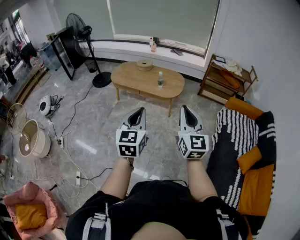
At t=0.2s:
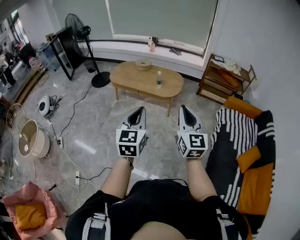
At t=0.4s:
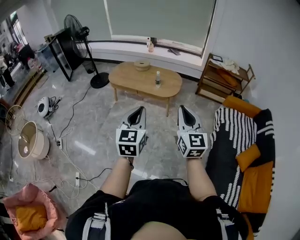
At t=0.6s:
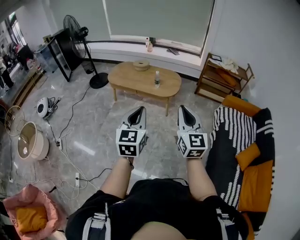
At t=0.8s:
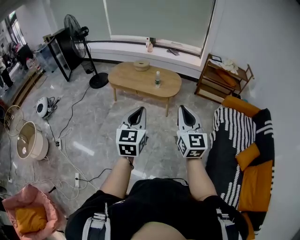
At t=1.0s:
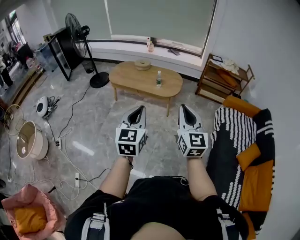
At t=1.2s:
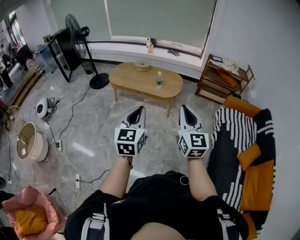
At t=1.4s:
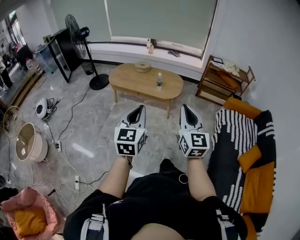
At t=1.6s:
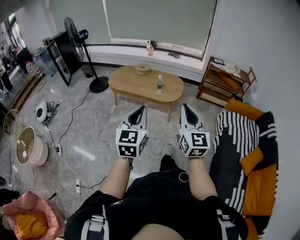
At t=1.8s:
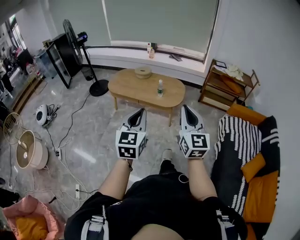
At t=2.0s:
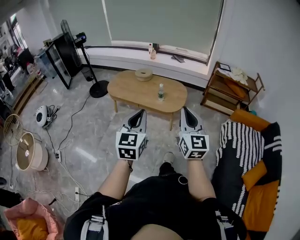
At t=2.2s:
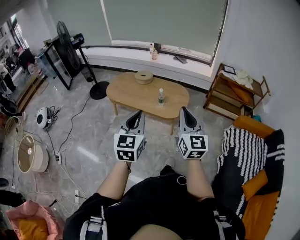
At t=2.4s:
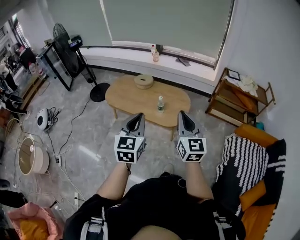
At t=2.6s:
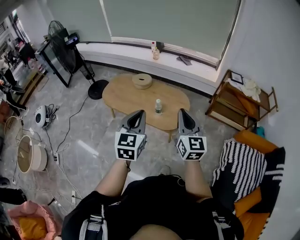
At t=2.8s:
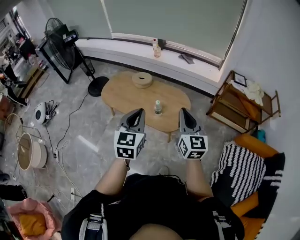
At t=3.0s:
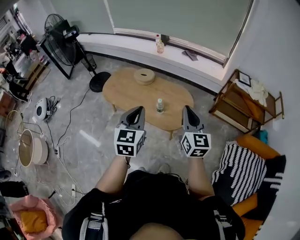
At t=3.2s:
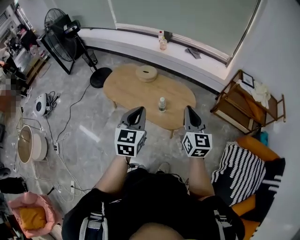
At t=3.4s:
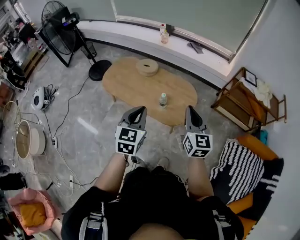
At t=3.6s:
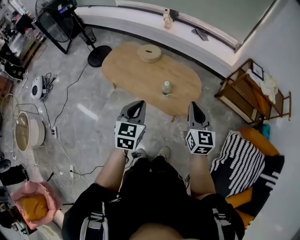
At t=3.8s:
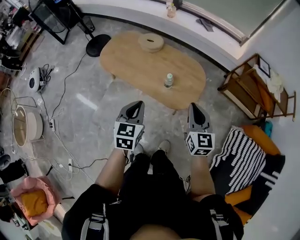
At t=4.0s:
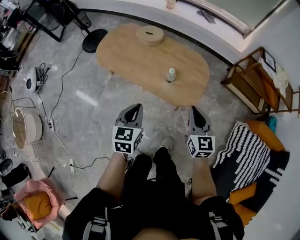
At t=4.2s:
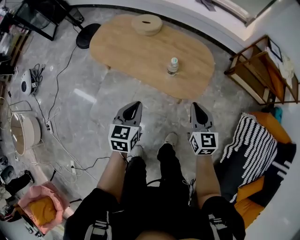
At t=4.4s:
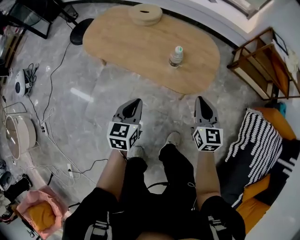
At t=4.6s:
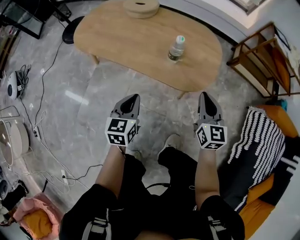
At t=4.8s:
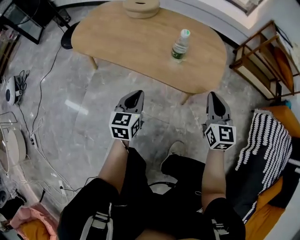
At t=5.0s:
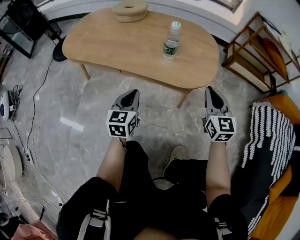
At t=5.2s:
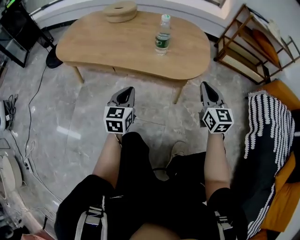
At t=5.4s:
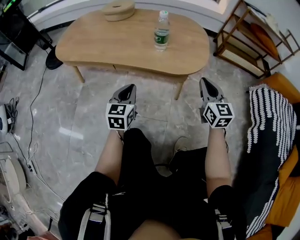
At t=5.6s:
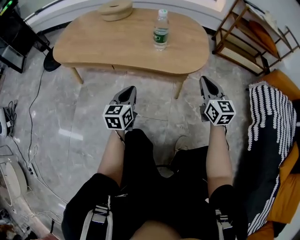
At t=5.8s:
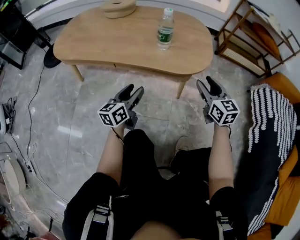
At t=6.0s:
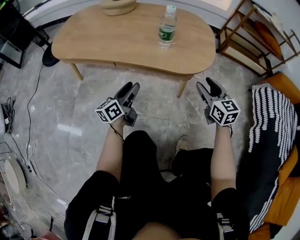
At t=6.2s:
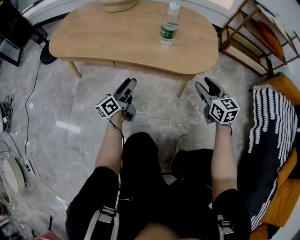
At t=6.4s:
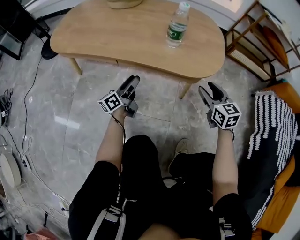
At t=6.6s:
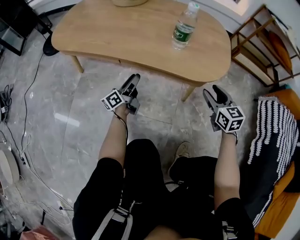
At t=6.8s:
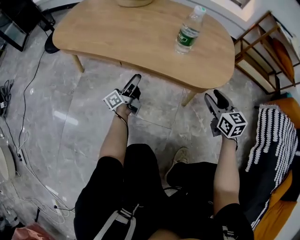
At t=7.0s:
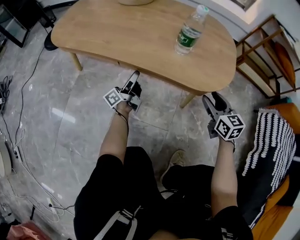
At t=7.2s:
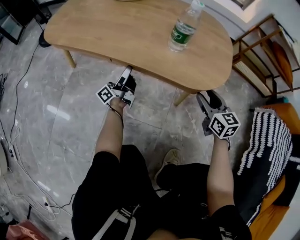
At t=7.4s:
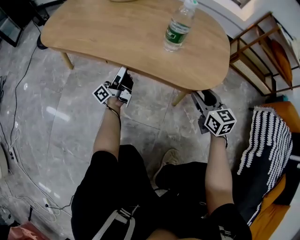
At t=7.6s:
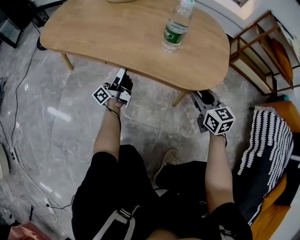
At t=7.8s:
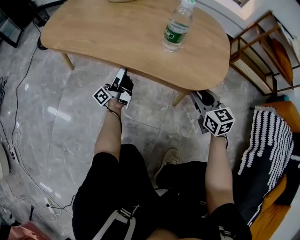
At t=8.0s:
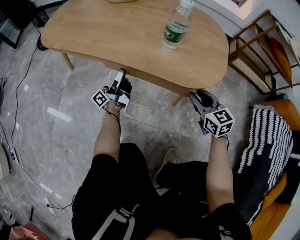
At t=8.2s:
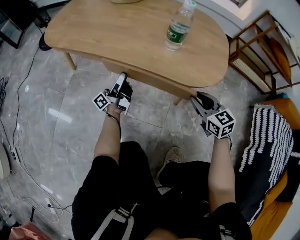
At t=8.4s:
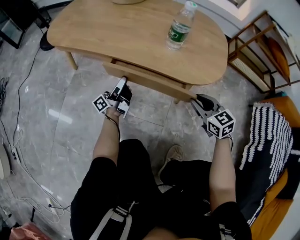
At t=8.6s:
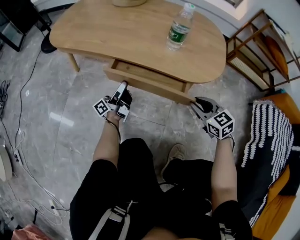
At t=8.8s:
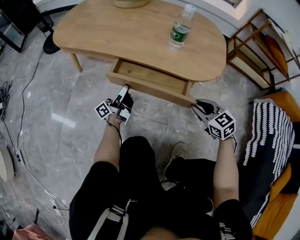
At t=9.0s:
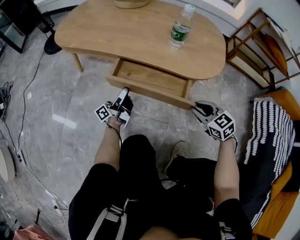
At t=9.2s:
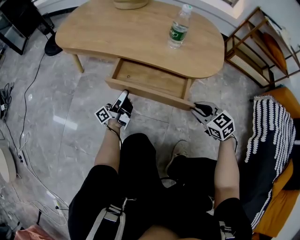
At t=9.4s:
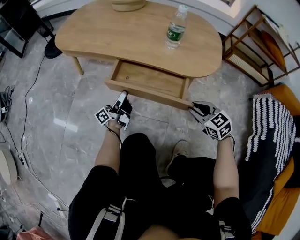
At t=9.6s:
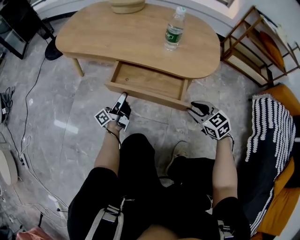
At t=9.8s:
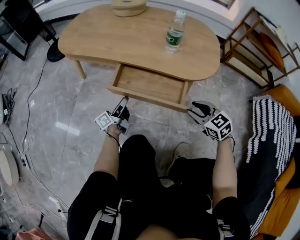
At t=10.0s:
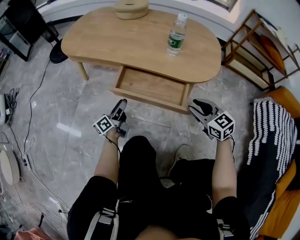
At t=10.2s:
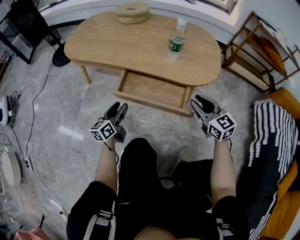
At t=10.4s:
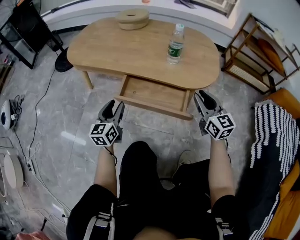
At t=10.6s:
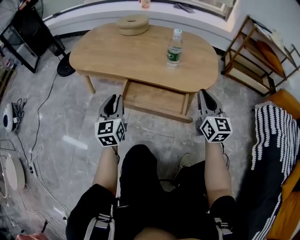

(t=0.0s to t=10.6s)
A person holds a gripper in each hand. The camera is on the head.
t=0.0s - t=1.6s: The right gripper moves approximately 5 cm; the left gripper ends up some 5 cm from where it was.
t=1.6s - t=3.0s: The two grippers travel together, forward, some 60 cm.
t=3.0s - t=4.6s: Both grippers travel together downward, some 60 cm.
t=4.6s - t=6.0s: Both grippers move downward, approximately 25 cm. The left gripper rotates roughly 40 degrees, and opens up. Meanwhile the right gripper opens its fingers.
t=6.0s - t=7.6s: The right gripper goes roughly 15 cm downward and forward. Meanwhile the left gripper heads forward and downward, covering roughly 20 cm, and turns by roughly 40 degrees.
t=7.6s - t=9.0s: The two grippers go roughly 15 cm backward and to the left. The right gripper swivels approximately 30 degrees.
t=9.0s - t=10.6s: Both grippers move upward, some 20 cm. The left gripper rotates around the line of its fingers by approximately 80 degrees, clockwise from behind, and closes its fingers, while the right gripper angles its fingers upward, by roughly 40 degrees.

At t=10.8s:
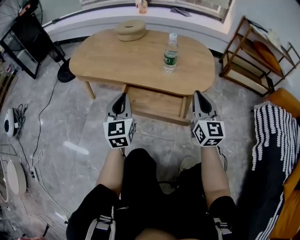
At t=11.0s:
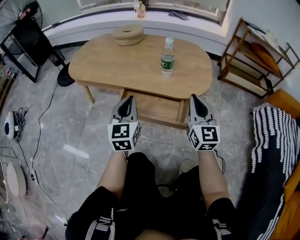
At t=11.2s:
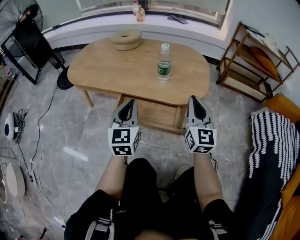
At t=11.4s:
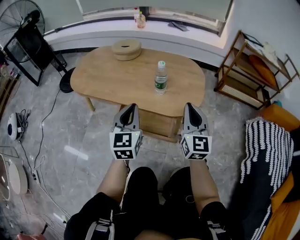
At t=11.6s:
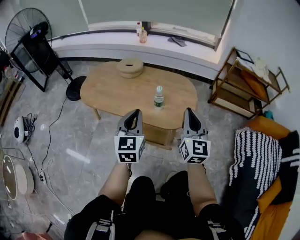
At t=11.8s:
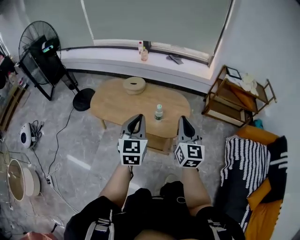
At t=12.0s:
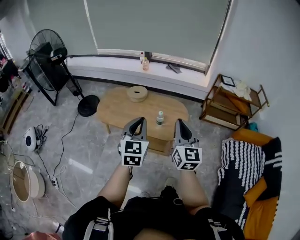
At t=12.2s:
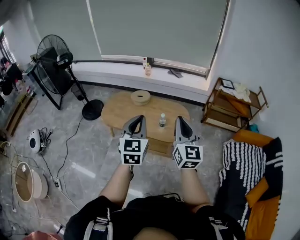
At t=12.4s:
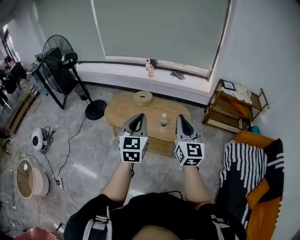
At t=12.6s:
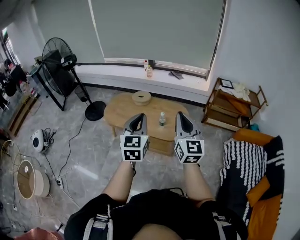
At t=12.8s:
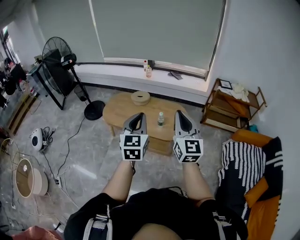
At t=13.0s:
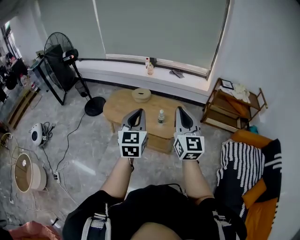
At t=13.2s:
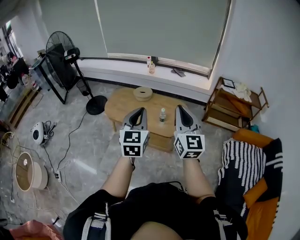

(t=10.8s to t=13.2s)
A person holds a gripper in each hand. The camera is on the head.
t=10.8s - t=12.0s: The grippers both shift upward by some 70 cm.
t=12.0s - t=13.2s: The right gripper heads upward and backward, covering some 15 cm, while the left gripper goes roughly 10 cm backward and upward.

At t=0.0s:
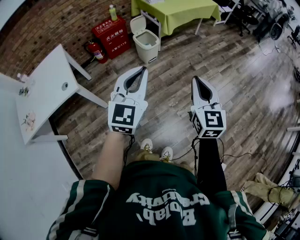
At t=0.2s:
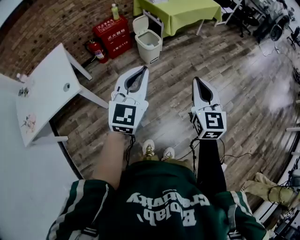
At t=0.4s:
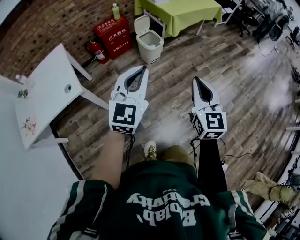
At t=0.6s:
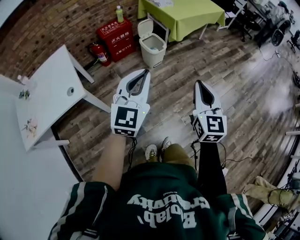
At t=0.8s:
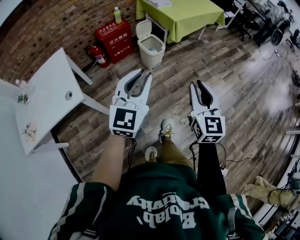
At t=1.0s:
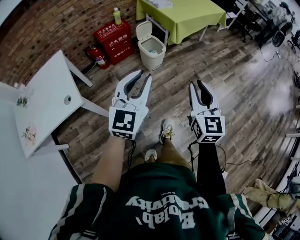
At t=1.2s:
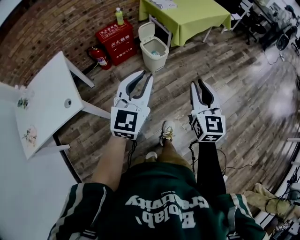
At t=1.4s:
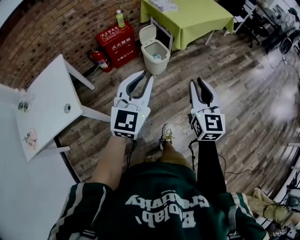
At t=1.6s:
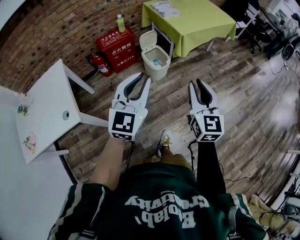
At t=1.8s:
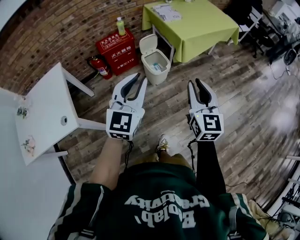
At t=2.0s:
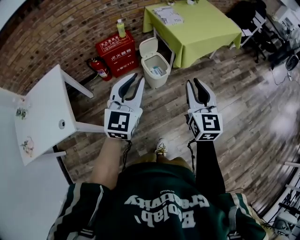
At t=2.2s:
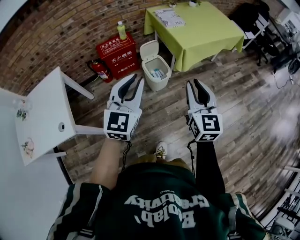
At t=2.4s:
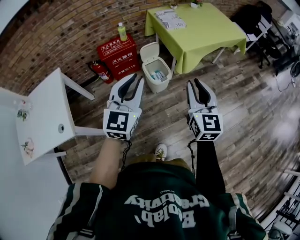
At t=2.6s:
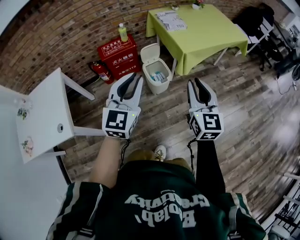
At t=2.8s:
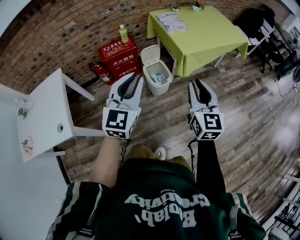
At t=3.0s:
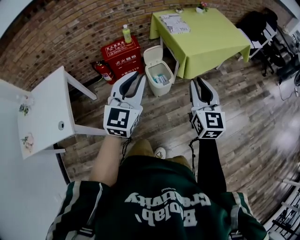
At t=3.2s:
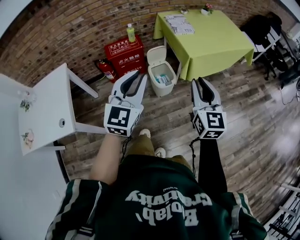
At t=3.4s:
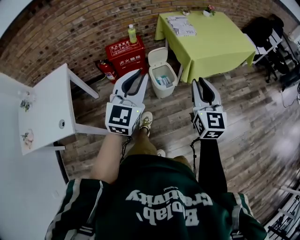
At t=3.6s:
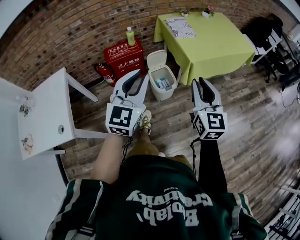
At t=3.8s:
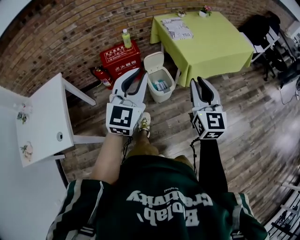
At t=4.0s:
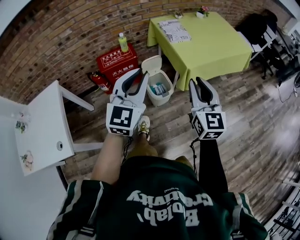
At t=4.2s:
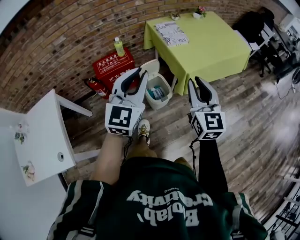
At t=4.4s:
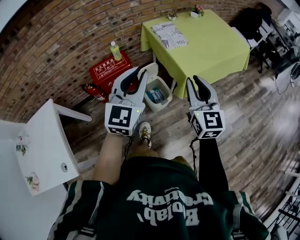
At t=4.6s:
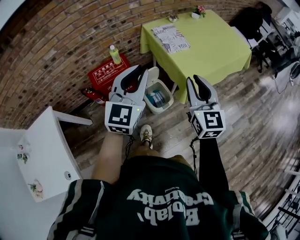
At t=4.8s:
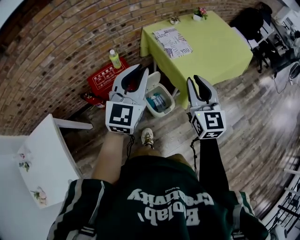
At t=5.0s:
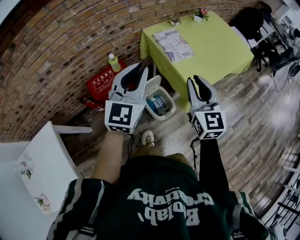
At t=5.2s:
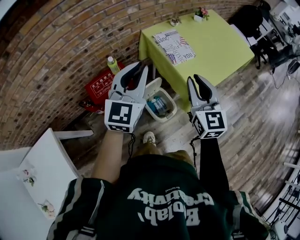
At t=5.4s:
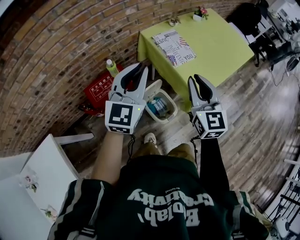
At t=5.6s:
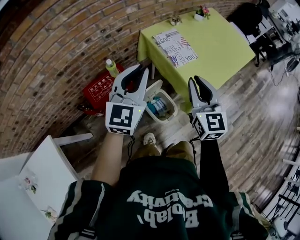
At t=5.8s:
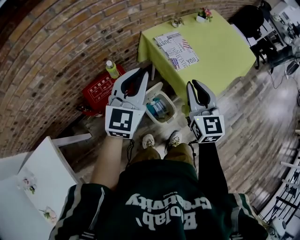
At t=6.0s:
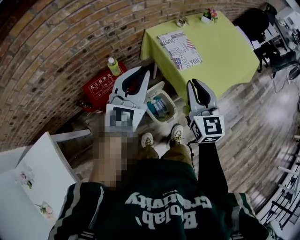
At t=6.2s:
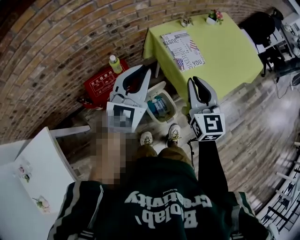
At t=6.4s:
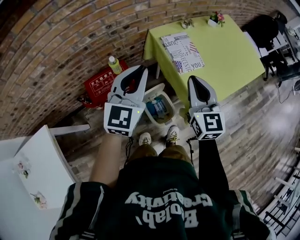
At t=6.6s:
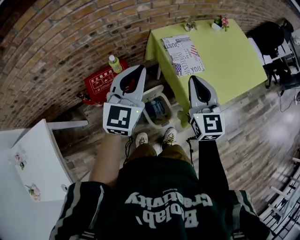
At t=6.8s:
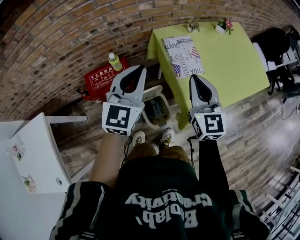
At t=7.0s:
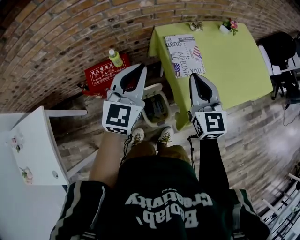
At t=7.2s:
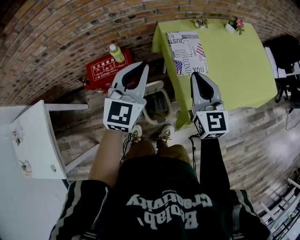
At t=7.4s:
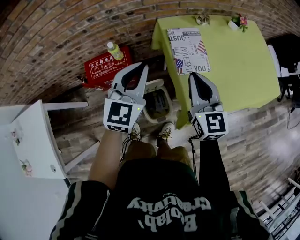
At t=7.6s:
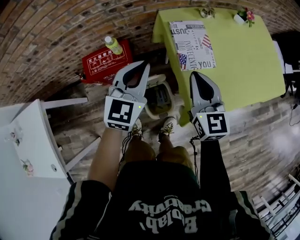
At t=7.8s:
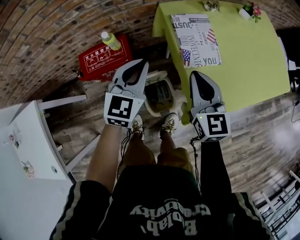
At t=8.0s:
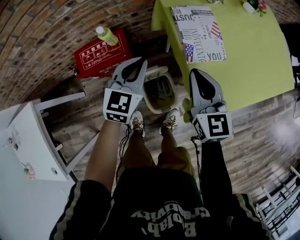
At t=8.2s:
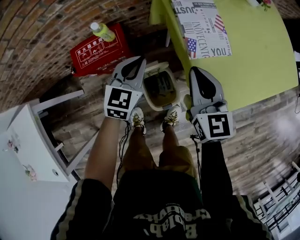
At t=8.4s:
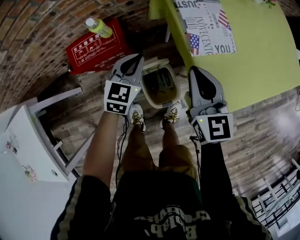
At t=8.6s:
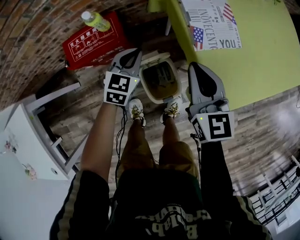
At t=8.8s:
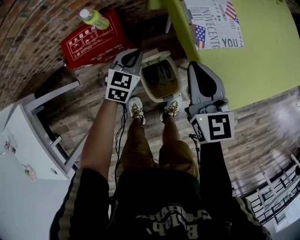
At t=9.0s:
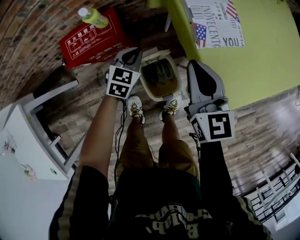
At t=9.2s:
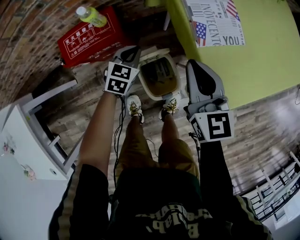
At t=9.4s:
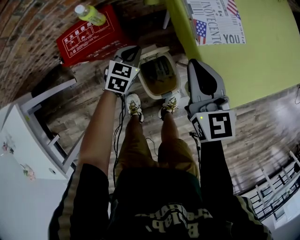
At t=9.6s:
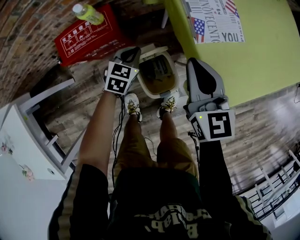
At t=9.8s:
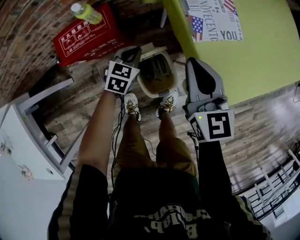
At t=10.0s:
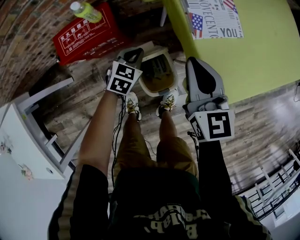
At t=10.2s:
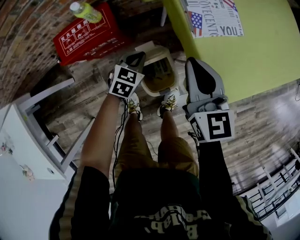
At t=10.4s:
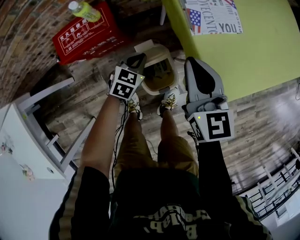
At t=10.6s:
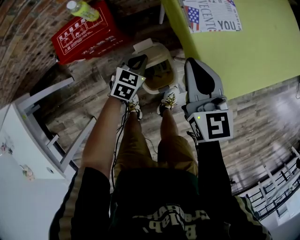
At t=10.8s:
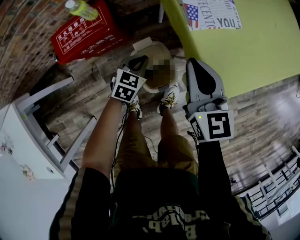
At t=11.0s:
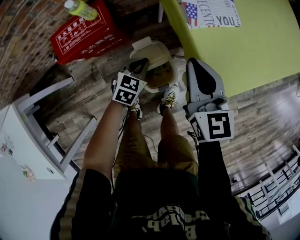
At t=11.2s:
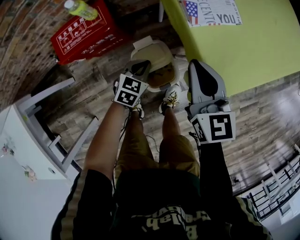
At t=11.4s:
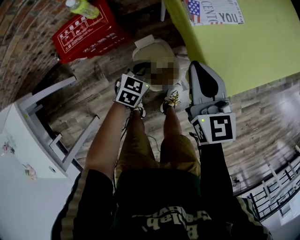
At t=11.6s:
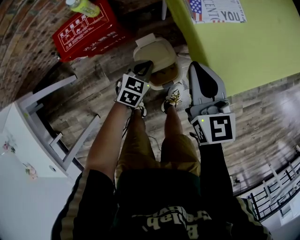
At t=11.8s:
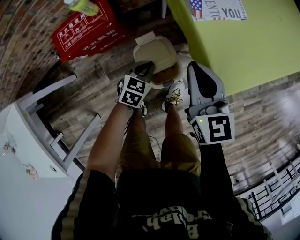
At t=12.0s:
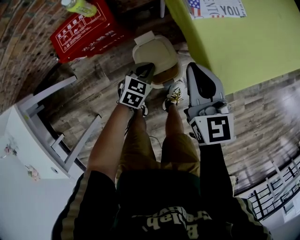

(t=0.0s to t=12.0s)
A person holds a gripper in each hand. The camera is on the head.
t=0.0s - t=1.6s: The grippers both shift forward by approximately 25 cm. The right gripper opens.
t=1.6s - t=3.0s: Both grippers travel together forward, about 15 cm.
t=3.0s - t=4.4s: The two grippers go about 20 cm forward.
t=4.4s - t=6.0s: The two grippers go approximately 25 cm forward and to the left.
t=6.0s - t=7.6s: The right gripper travels forward, downward and to the right by roughly 15 cm, and changes its angle by some 20 degrees; the left gripper moves downward, to the right and forward, roughly 15 cm.
t=7.6s - t=9.0s: The left gripper moves downward, about 30 cm, and turns by about 30 degrees, while the right gripper goes about 15 cm downward.
t=9.0s - t=10.4s: The left gripper heads backward, covering some 5 cm.
t=10.4s - t=12.0s: The right gripper moves approximately 5 cm. The left gripper heads backward, covering about 5 cm.
